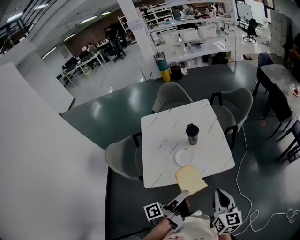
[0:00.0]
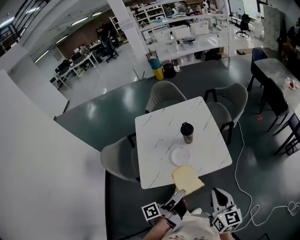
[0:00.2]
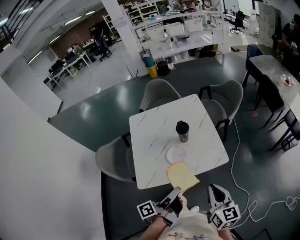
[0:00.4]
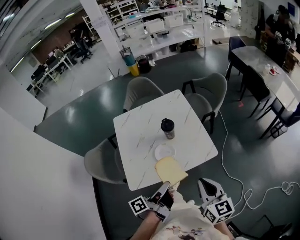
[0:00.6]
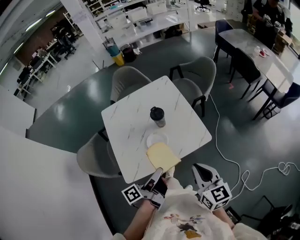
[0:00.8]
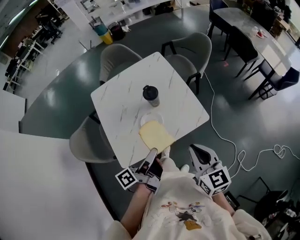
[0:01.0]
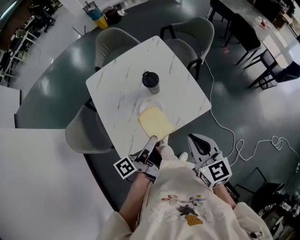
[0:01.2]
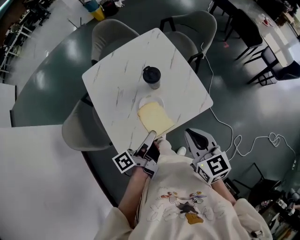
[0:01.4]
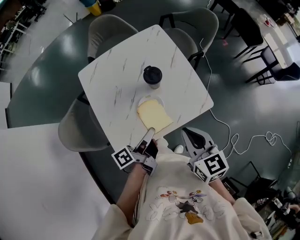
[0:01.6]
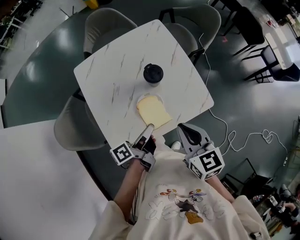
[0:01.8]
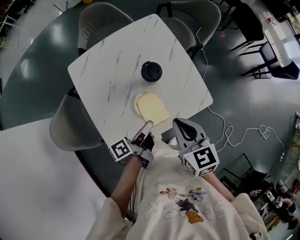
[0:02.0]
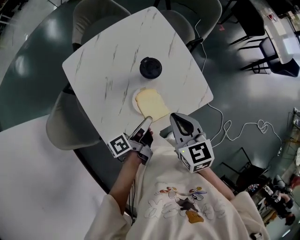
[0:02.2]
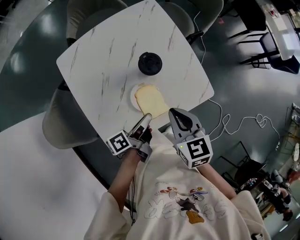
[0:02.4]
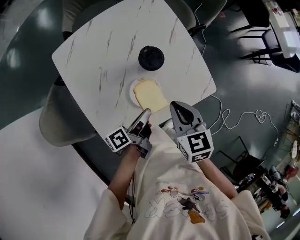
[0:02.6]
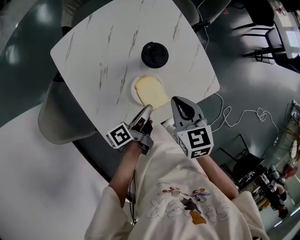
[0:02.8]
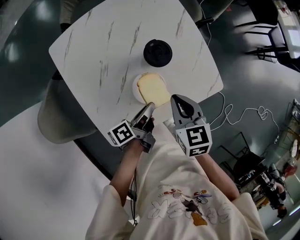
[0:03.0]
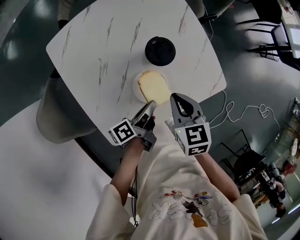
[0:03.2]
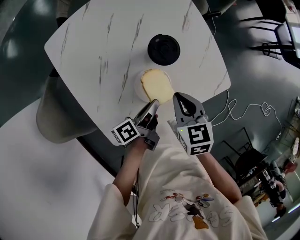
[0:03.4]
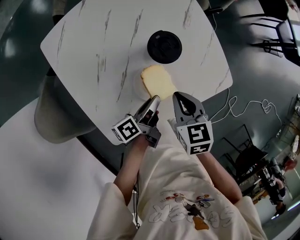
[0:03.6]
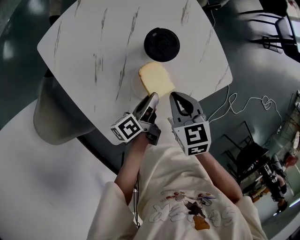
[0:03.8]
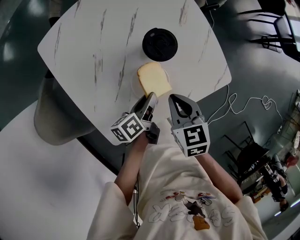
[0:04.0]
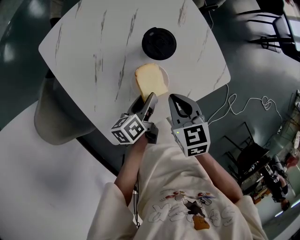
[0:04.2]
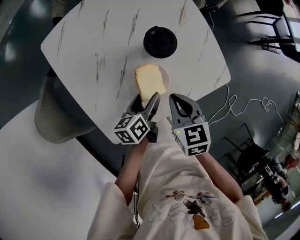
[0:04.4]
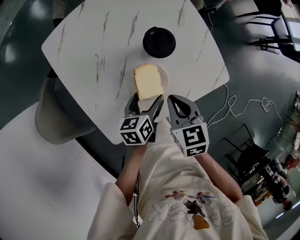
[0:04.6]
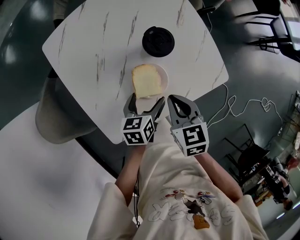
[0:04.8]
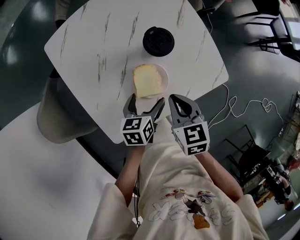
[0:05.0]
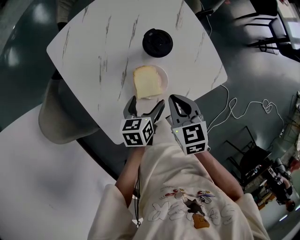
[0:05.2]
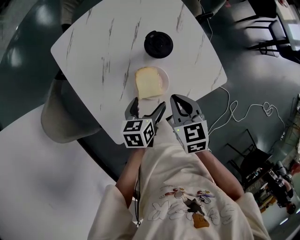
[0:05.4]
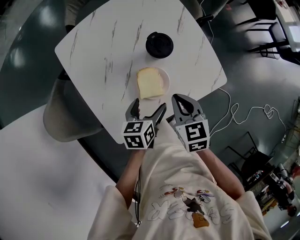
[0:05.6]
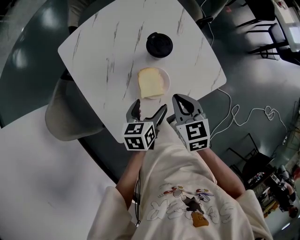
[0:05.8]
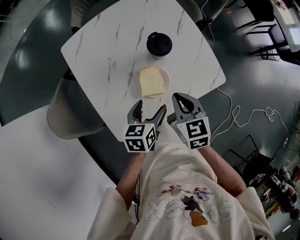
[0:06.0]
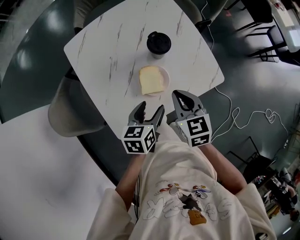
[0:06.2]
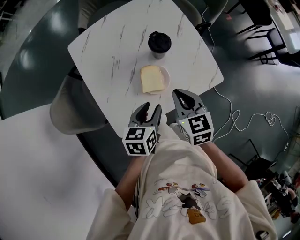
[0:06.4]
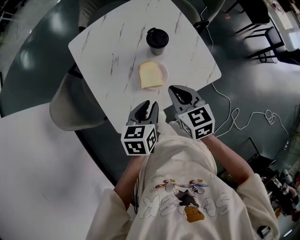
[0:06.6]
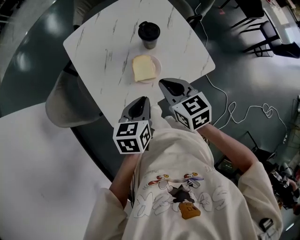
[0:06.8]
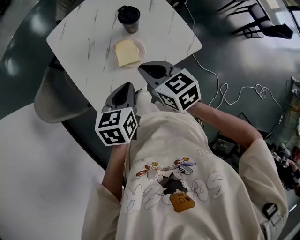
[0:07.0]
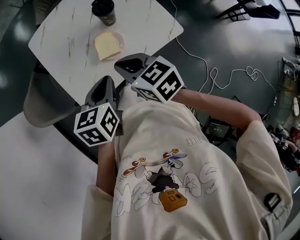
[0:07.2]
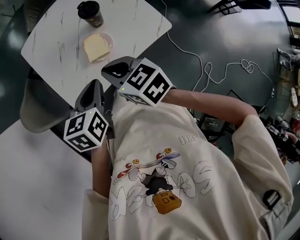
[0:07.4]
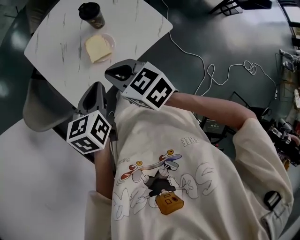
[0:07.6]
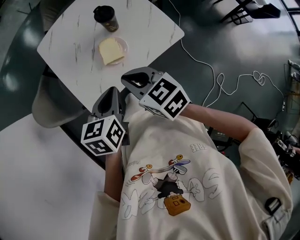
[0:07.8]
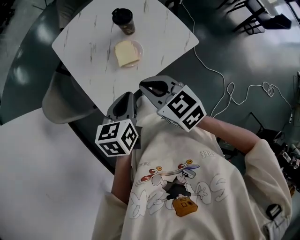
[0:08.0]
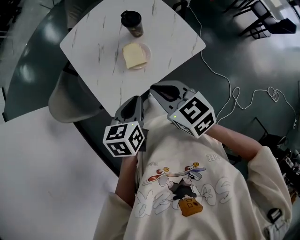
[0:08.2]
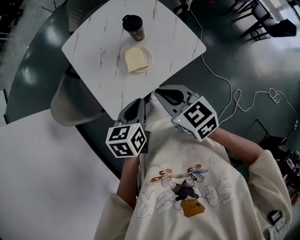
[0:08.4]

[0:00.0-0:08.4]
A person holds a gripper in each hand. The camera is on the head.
0:00.0 to 0:01.4: The right gripper moves about 15 cm.
0:01.4 to 0:02.8: The right gripper heads downward, covering approximately 15 cm.
0:02.8 to 0:04.2: The right gripper is displaced downward by some 5 cm.
0:05.6 to 0:07.0: The right gripper shifts approximately 10 cm upward.
0:07.0 to 0:08.4: The right gripper shifts by approximately 10 cm.

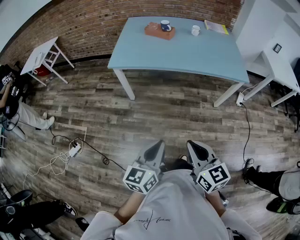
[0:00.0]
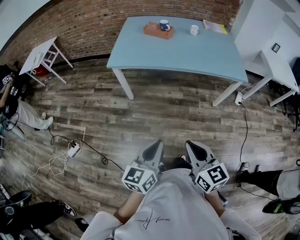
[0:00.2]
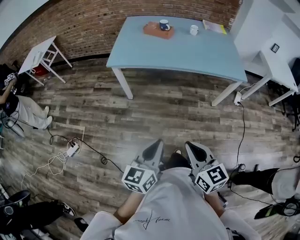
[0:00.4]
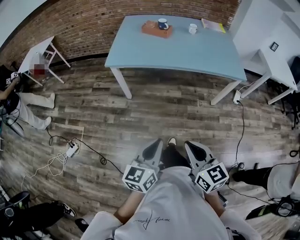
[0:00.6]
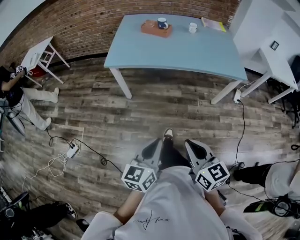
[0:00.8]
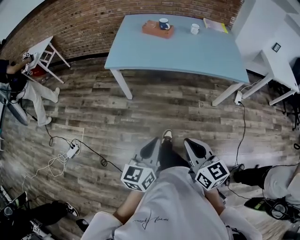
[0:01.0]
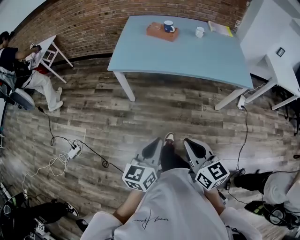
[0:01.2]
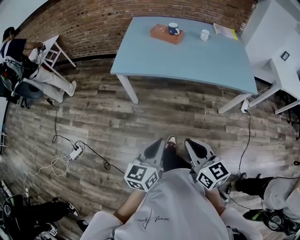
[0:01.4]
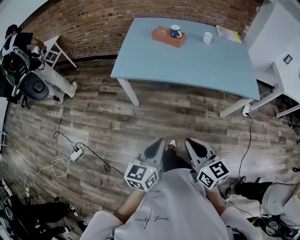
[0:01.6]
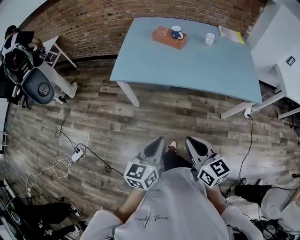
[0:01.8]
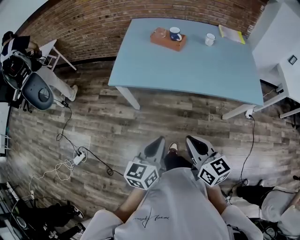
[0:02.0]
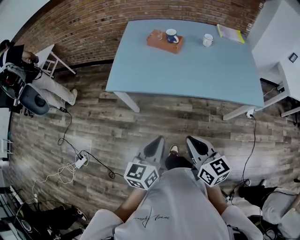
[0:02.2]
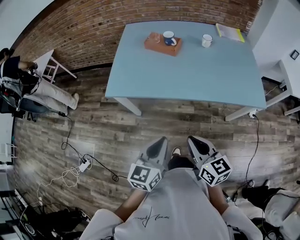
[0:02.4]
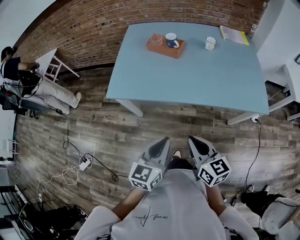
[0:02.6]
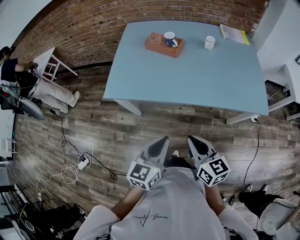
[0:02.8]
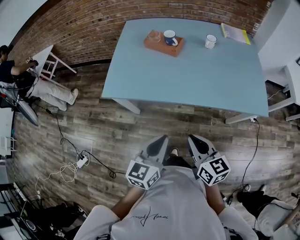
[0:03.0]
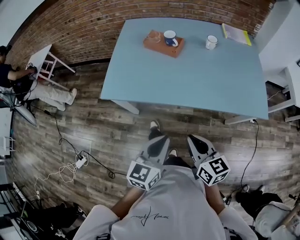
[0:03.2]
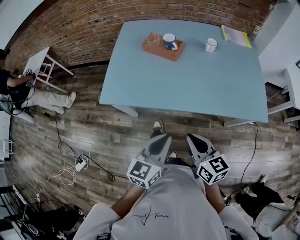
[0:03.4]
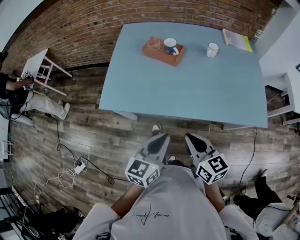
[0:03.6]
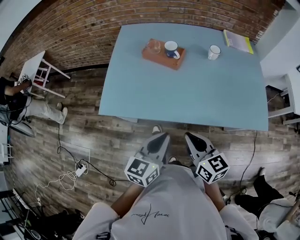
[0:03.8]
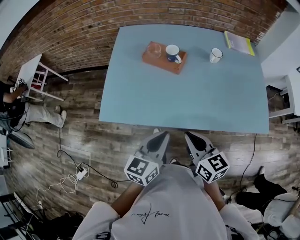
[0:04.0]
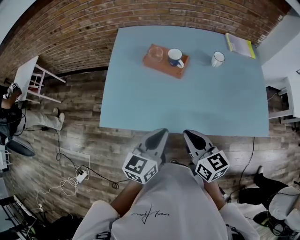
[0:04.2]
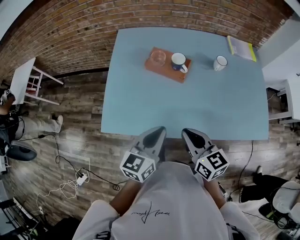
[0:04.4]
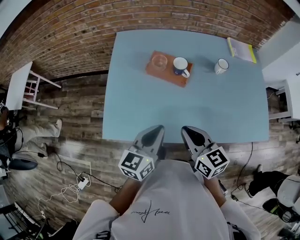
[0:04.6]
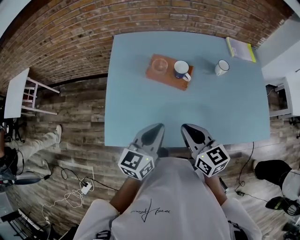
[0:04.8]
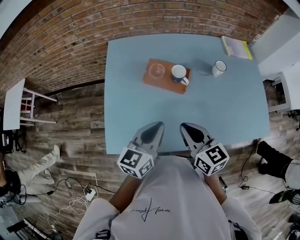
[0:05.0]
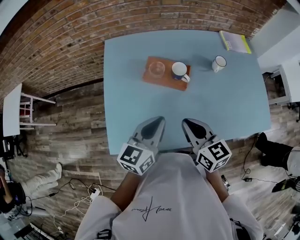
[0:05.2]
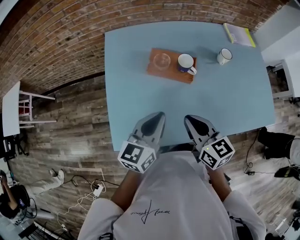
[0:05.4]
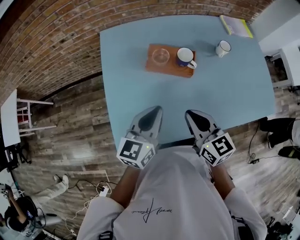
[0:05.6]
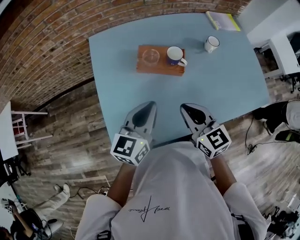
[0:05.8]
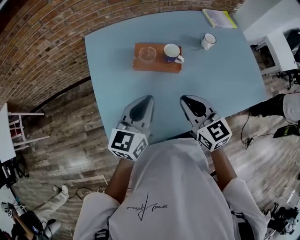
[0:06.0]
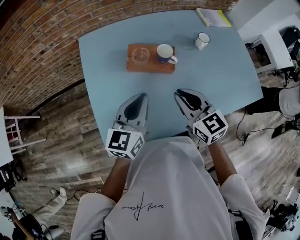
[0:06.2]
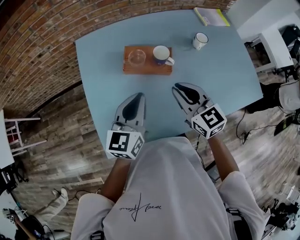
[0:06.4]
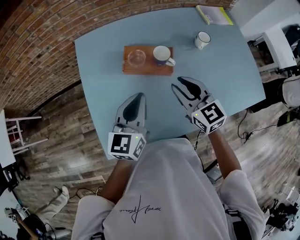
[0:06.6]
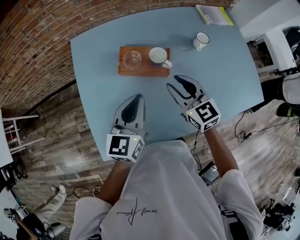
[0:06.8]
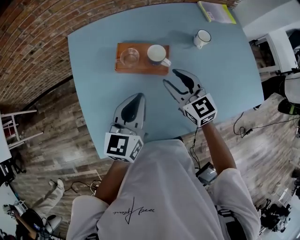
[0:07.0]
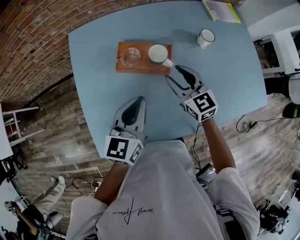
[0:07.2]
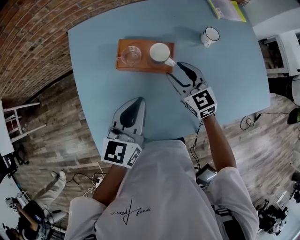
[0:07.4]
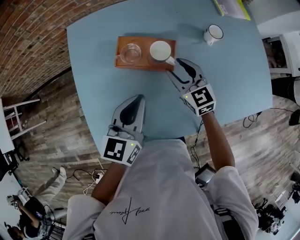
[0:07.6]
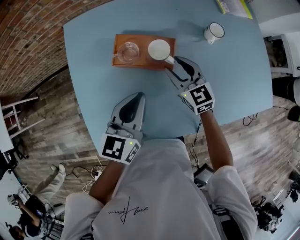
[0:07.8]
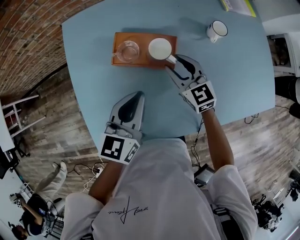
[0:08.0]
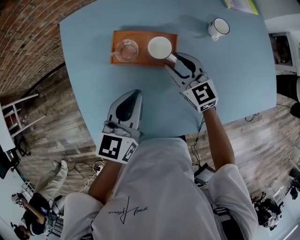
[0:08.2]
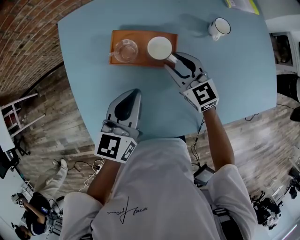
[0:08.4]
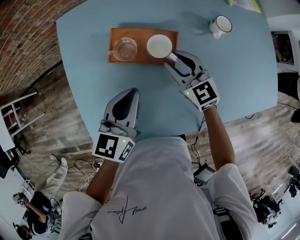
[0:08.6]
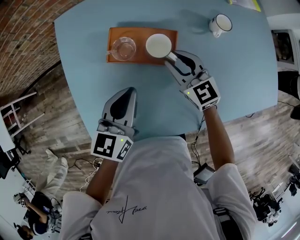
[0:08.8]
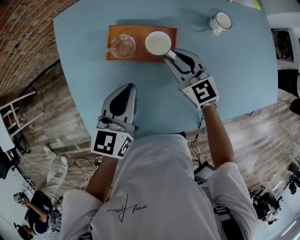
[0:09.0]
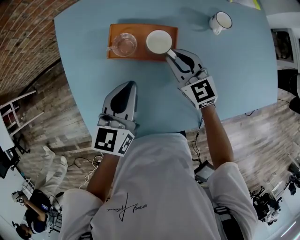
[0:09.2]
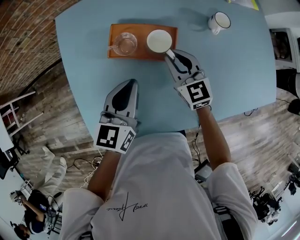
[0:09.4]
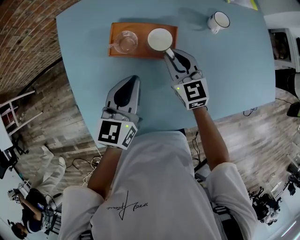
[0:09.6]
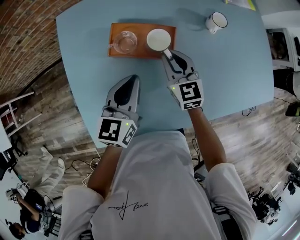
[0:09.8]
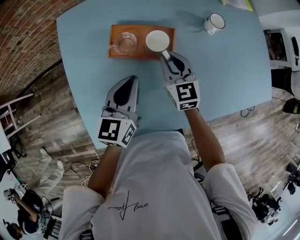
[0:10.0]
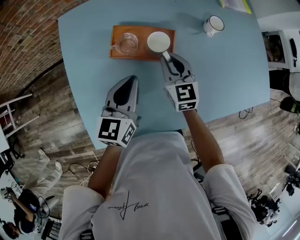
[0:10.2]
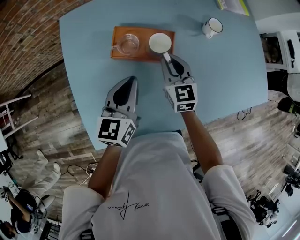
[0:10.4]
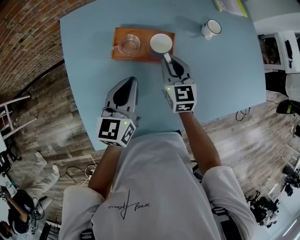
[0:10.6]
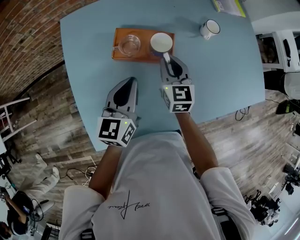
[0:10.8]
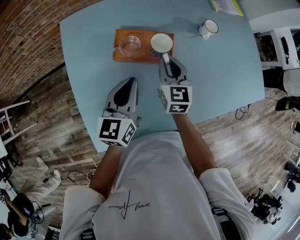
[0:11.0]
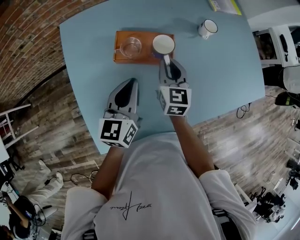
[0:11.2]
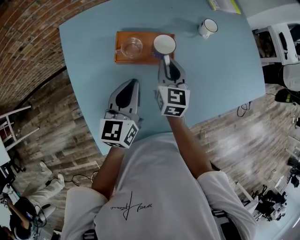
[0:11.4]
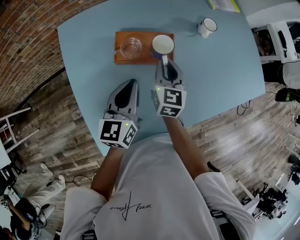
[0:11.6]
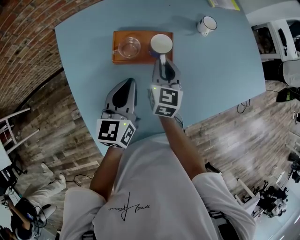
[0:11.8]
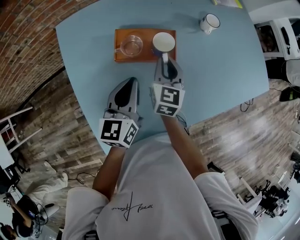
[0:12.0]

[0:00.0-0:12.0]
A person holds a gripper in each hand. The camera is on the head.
0:00.0 to 0:01.6: Both grippers move forward, roughly 15 cm.
0:01.6 to 0:03.0: The two grippers go roughly 20 cm forward and to the right.
0:03.0 to 0:04.4: The grippers both shift forward by some 25 cm.
0:04.4 to 0:06.0: The grippers both shift forward and to the left by about 15 cm. The right gripper rotates some 20 degrees.
0:06.0 to 0:07.6: The left gripper heads forward, covering some 5 cm, while the right gripper heads forward and downward, covering about 20 cm, and opens up.
0:07.6 to 0:09.0: The grippers move only a little.
0:09.0 to 0:10.4: The right gripper swivels some 20 degrees.
0:10.4 to 0:12.0: The right gripper changes its angle by about 30 degrees.

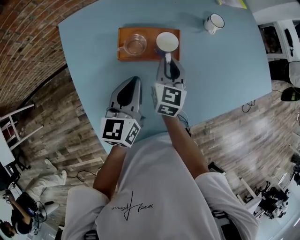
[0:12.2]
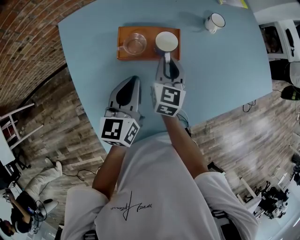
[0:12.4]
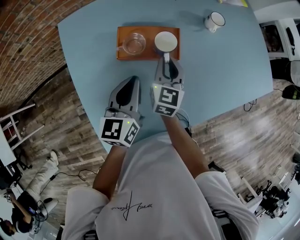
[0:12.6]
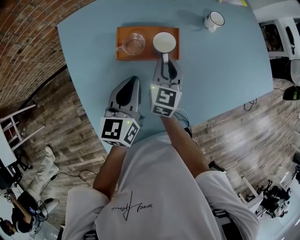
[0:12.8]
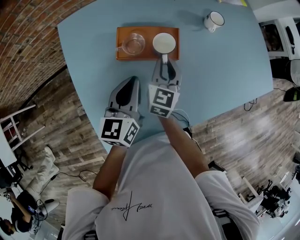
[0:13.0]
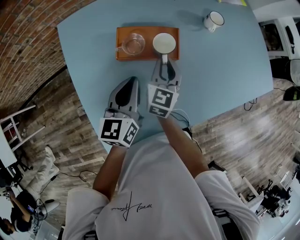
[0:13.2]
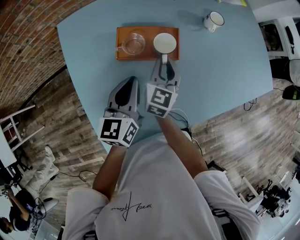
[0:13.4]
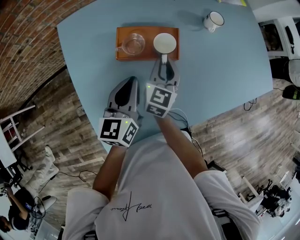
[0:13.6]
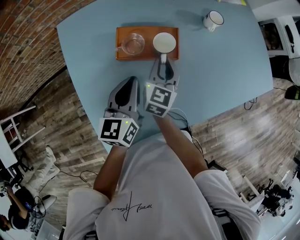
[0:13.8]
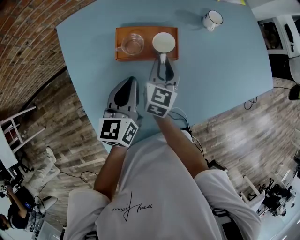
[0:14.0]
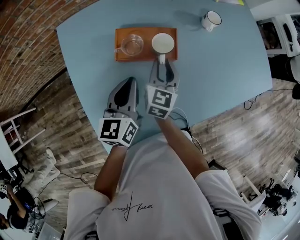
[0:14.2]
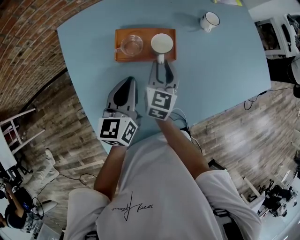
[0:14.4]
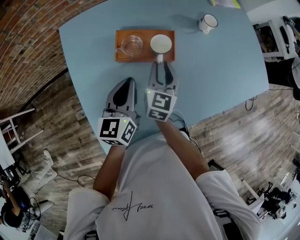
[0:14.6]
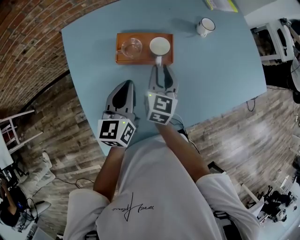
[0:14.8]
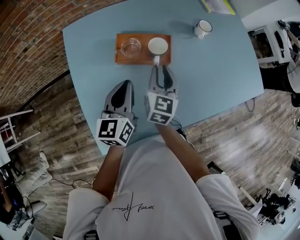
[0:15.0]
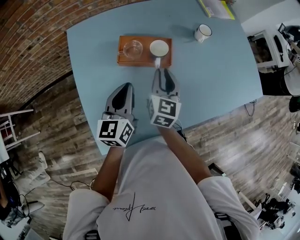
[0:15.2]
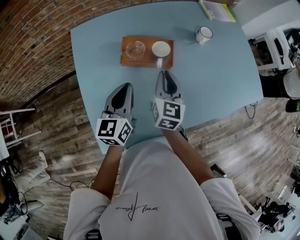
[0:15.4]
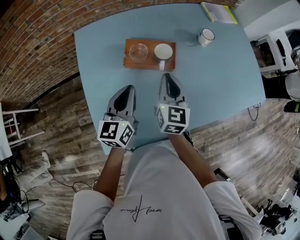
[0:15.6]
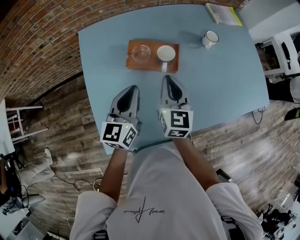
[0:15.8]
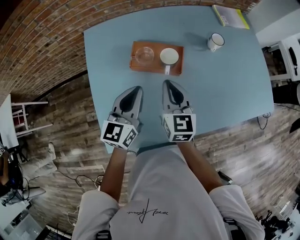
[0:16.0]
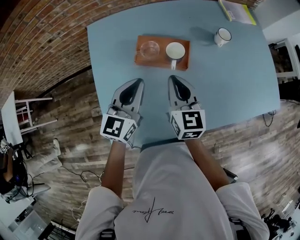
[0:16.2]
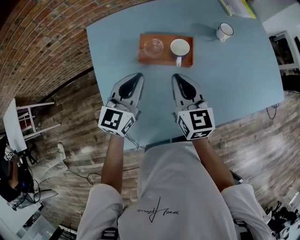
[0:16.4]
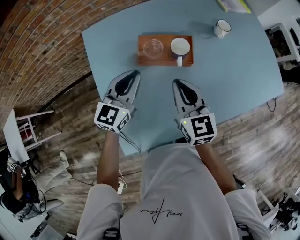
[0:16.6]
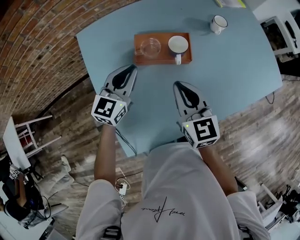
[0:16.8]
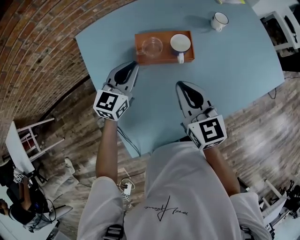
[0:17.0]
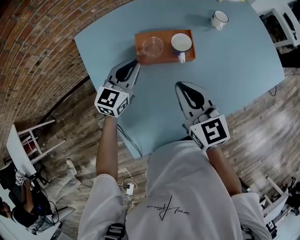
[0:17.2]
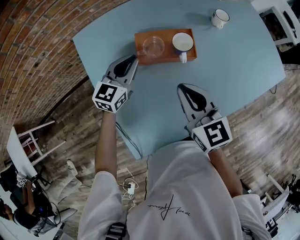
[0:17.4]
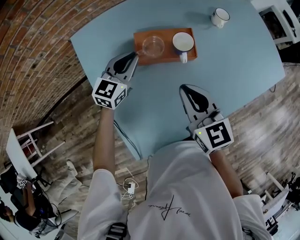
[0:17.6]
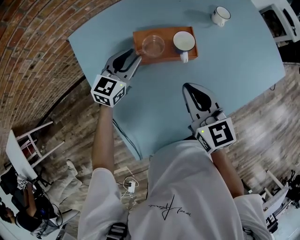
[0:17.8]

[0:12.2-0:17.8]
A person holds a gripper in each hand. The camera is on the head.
0:12.2 to 0:15.0: The grippers make only small movements.
0:15.0 to 0:16.4: The right gripper heads upward, covering roughly 5 cm, and rotates about 30 degrees, while the left gripper swivels approximately 20 degrees.
0:16.4 to 0:17.8: The left gripper is displaced forward and downward by approximately 15 cm, swivels some 20 degrees, and opens.
